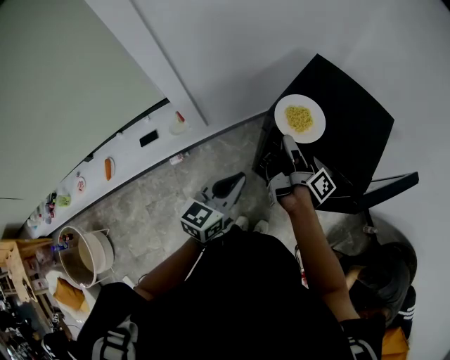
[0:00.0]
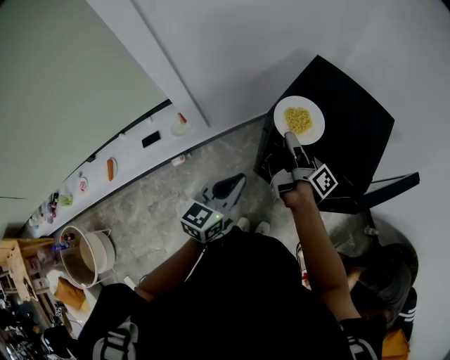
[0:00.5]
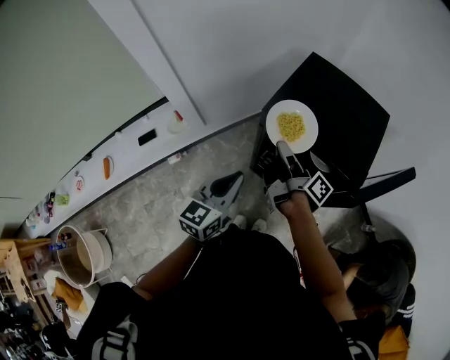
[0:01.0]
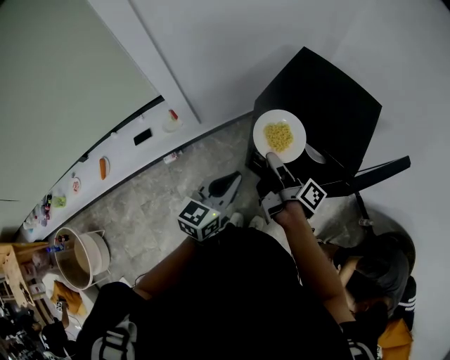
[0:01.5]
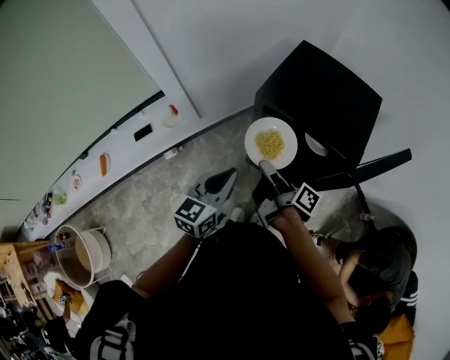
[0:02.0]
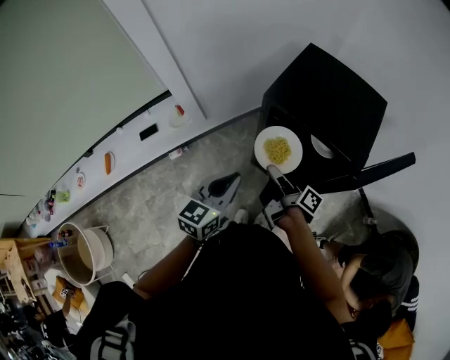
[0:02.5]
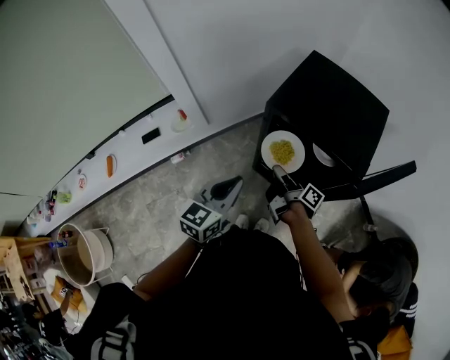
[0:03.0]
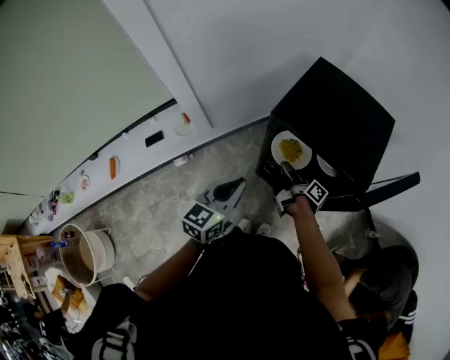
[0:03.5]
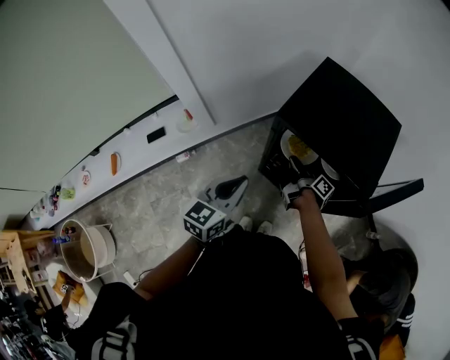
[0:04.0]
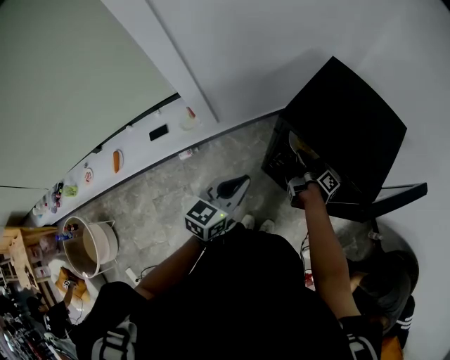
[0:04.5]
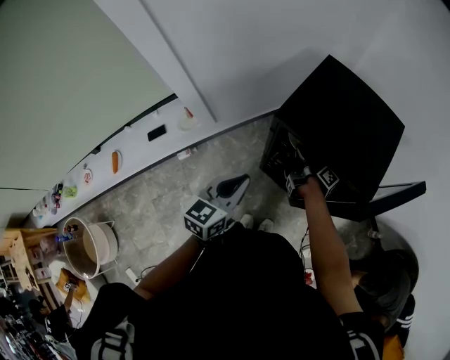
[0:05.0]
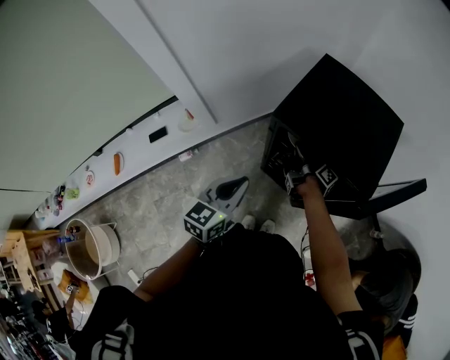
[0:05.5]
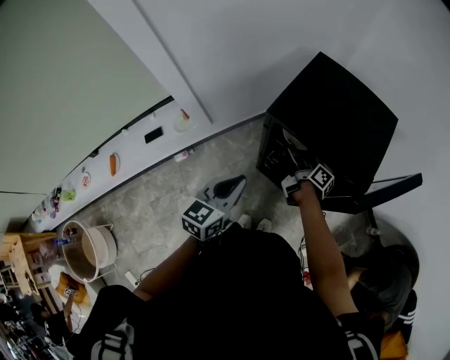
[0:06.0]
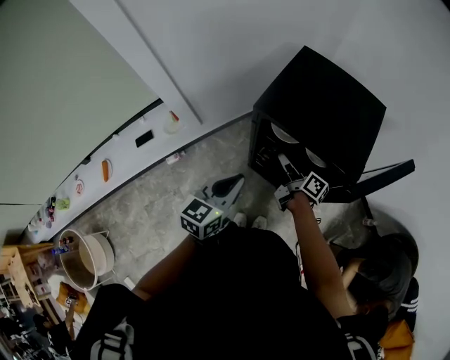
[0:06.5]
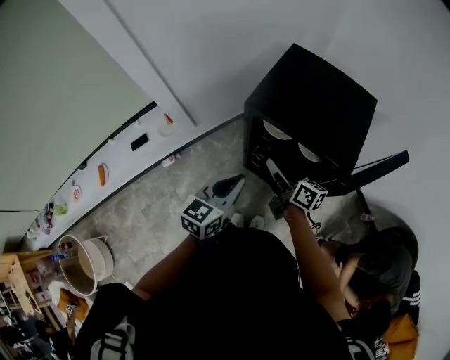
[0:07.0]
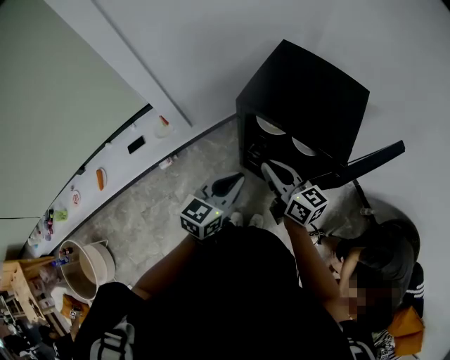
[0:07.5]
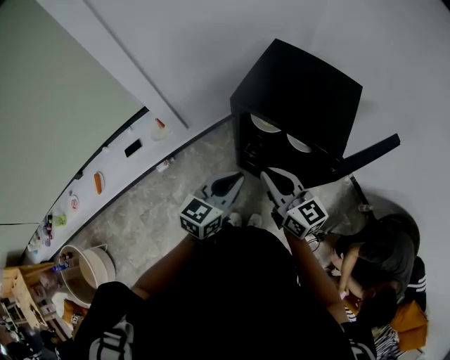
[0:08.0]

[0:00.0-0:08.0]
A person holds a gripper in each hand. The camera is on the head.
0:00.0 to 0:02.0: The left gripper heads backward, covering about 5 cm; the right gripper heads backward, covering some 15 cm.
0:02.0 to 0:04.0: The right gripper heads downward and forward, covering roughly 20 cm.
0:04.0 to 0:06.0: The right gripper opens.
0:06.0 to 0:08.0: The right gripper travels upward and backward by approximately 25 cm, rolls counterclockwise, seen from behind, by approximately 70 degrees, and closes up. The left gripper is displaced to the right by roughly 5 cm.

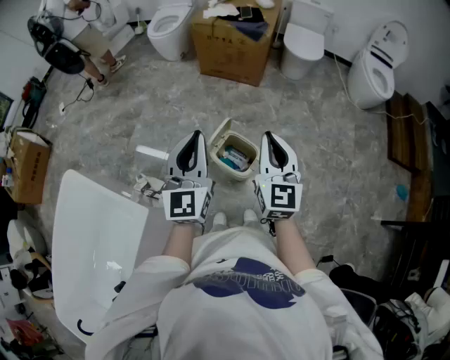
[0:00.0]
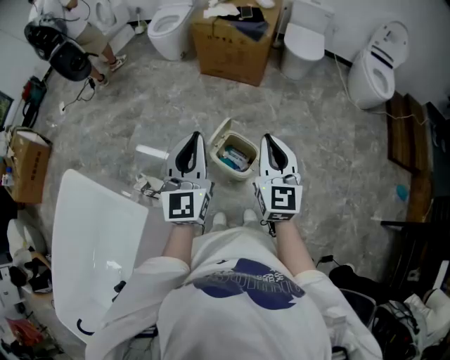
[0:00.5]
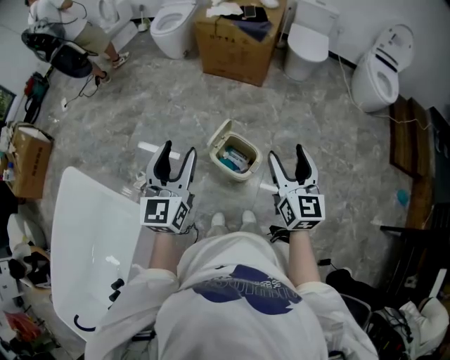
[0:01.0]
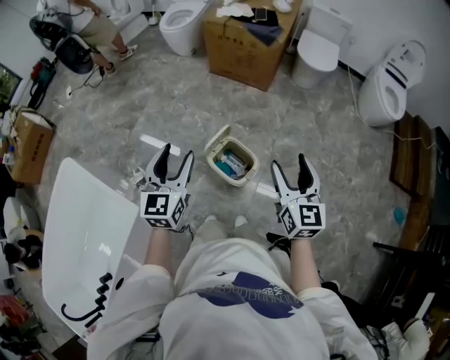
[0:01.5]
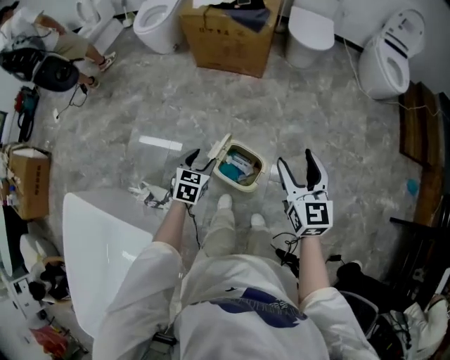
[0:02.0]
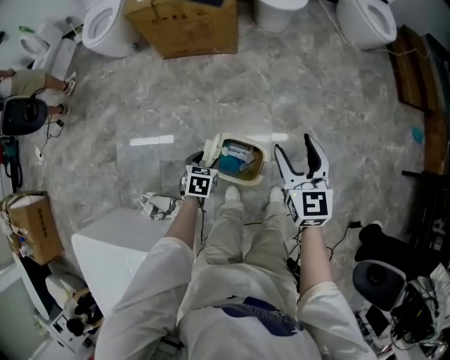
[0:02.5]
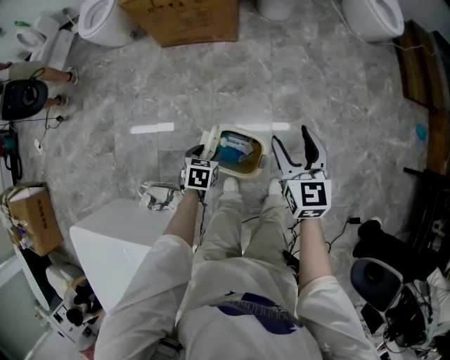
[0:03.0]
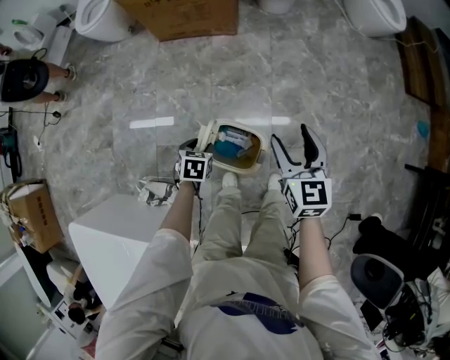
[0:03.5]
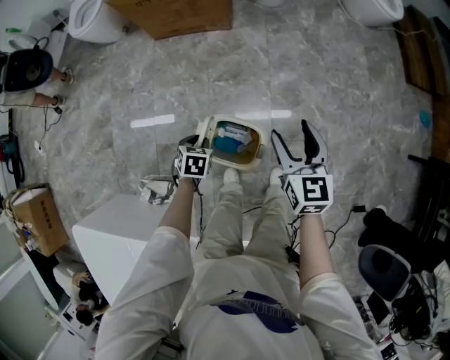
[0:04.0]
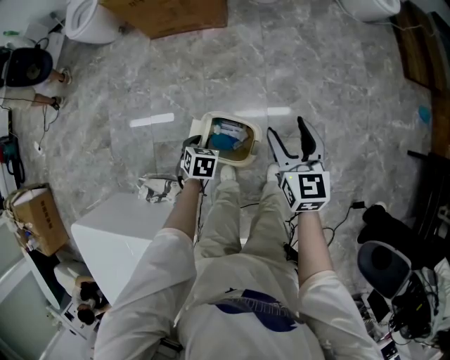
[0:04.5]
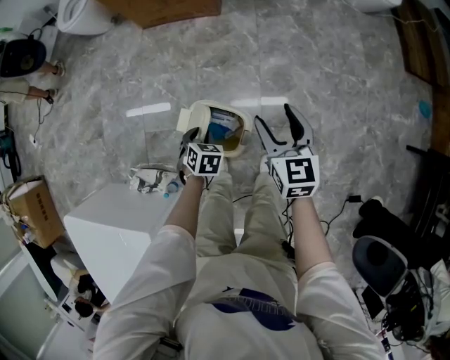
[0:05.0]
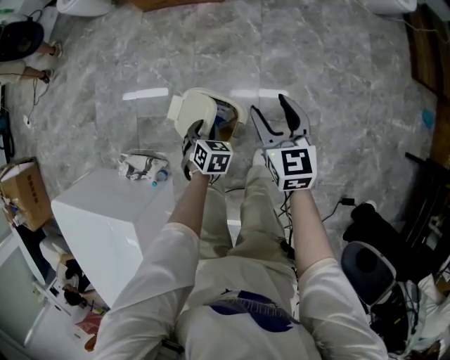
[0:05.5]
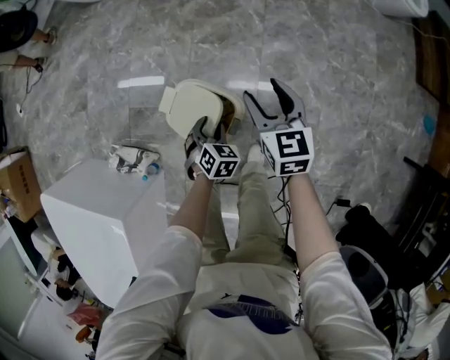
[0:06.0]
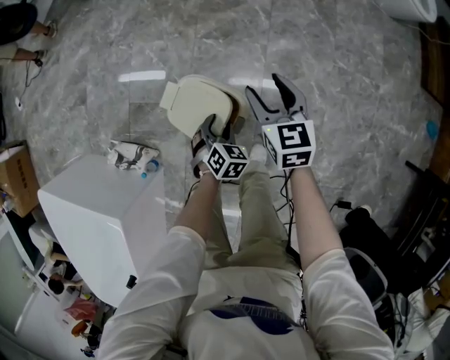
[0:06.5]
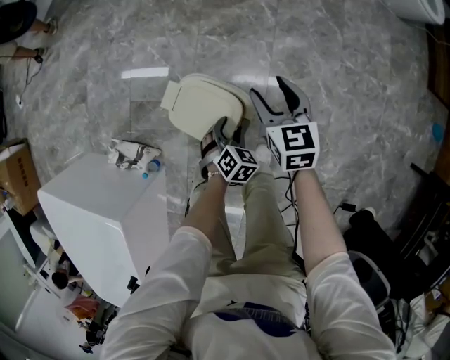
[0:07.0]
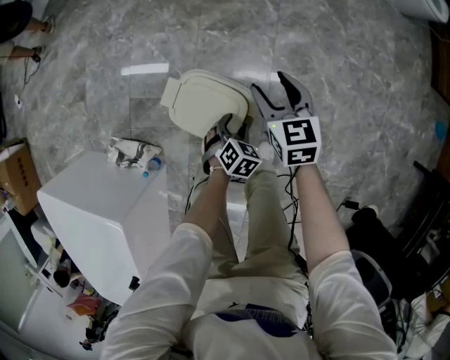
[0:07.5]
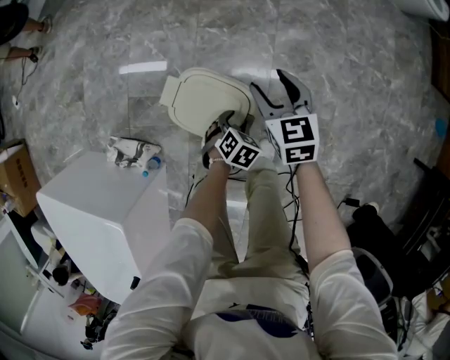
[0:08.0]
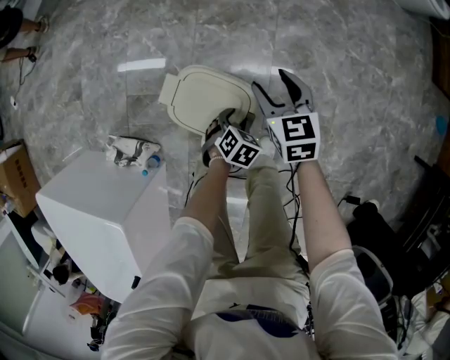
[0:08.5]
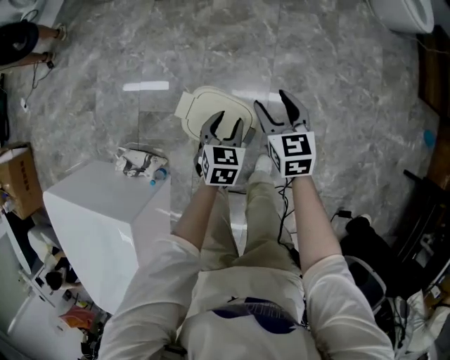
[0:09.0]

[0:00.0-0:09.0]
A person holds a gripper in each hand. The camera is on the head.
0:00.0 to 0:02.0: The left gripper shifts approximately 35 cm downward and forward, points its fingers about 50 degrees further downward, and opens its fingers, while the right gripper heads forward, downward and to the right, covering roughly 15 cm, and opens up.
0:02.0 to 0:04.5: Both grippers travel together downward, roughly 15 cm. The left gripper turns by about 20 degrees, and closes its fingers.
0:04.5 to 0:07.0: The right gripper moves downward, about 20 cm, and rotates some 20 degrees; the left gripper shifts some 20 cm downward, to the right and backward, and opens.
0:07.0 to 0:09.0: The right gripper changes place by approximately 5 cm. The left gripper moves upward and forward, approximately 15 cm, and rotates roughly 30 degrees.

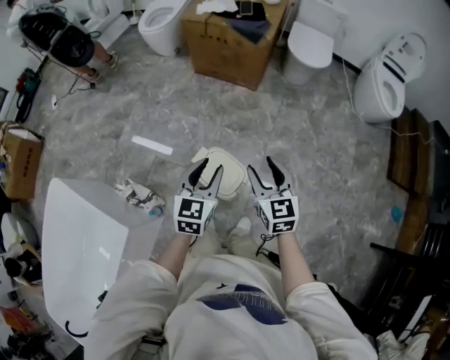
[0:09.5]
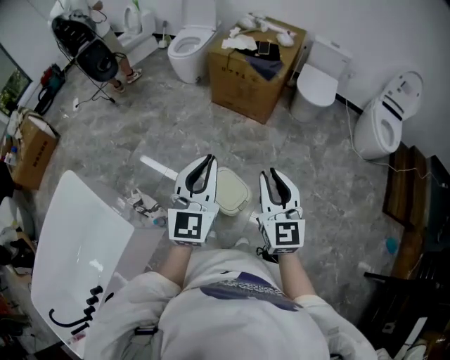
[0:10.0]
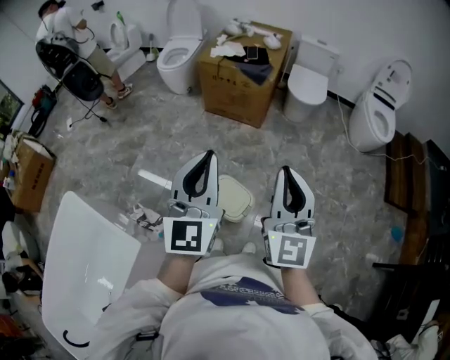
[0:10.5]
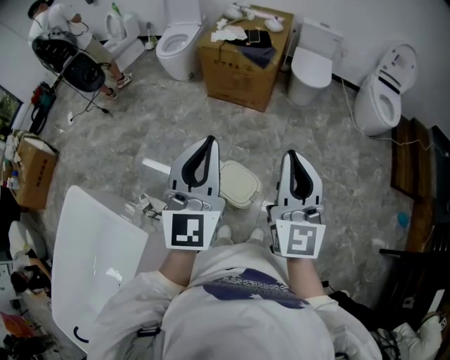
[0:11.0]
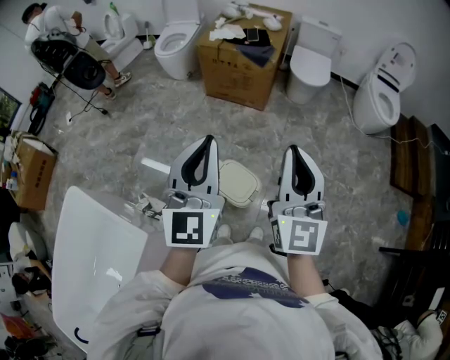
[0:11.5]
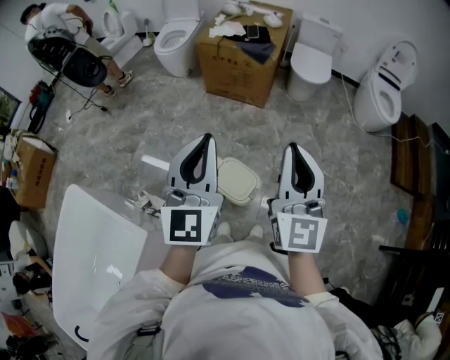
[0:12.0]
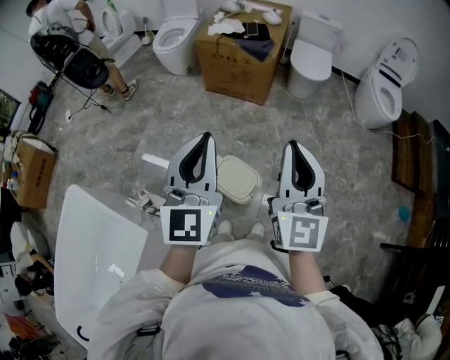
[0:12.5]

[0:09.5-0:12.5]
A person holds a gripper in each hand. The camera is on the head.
0:09.5 to 0:11.0: The grippers both shift upward by roughly 30 cm. The left gripper angles its fingers upward, by approximately 30 degrees, and closes; the right gripper points its fingers about 30 degrees further upward, and closes.
0:11.0 to 0:12.5: The grippers stay close to where they were, moving slightly.

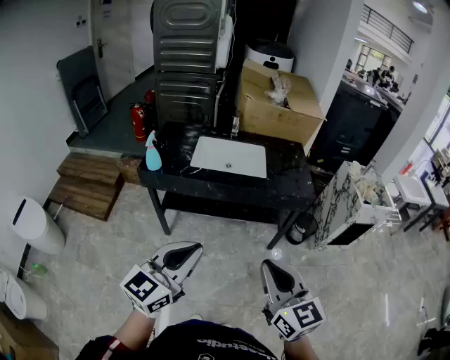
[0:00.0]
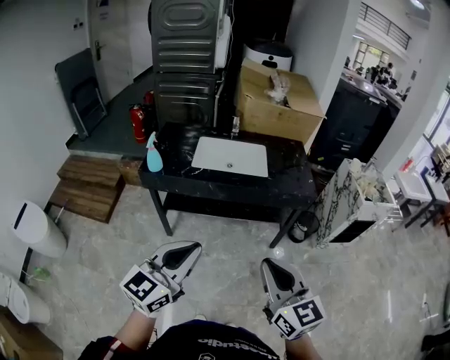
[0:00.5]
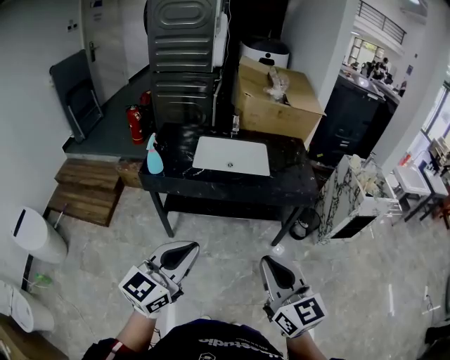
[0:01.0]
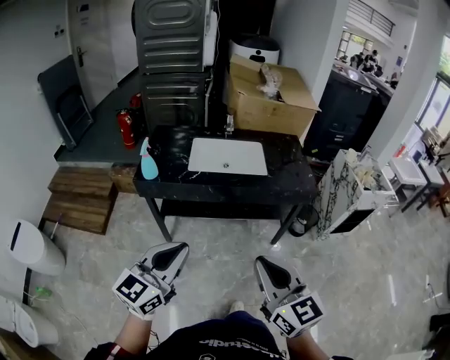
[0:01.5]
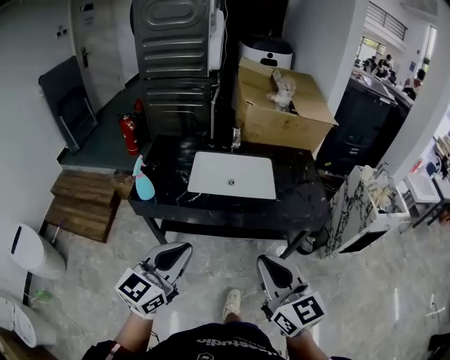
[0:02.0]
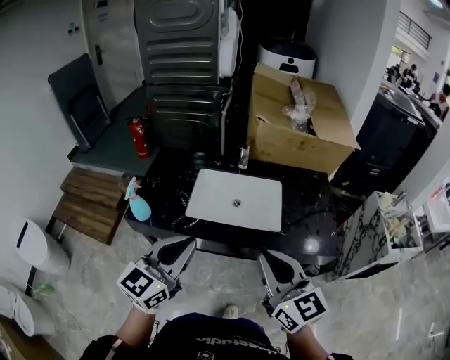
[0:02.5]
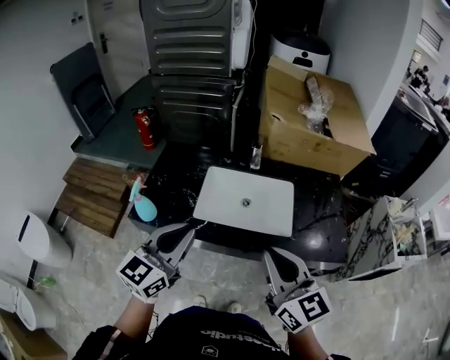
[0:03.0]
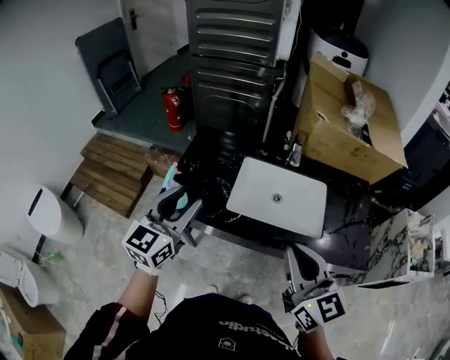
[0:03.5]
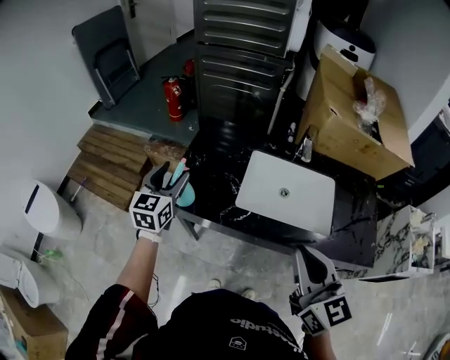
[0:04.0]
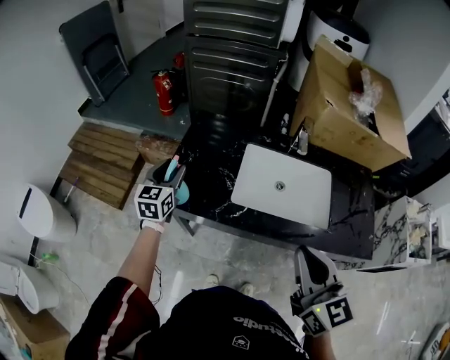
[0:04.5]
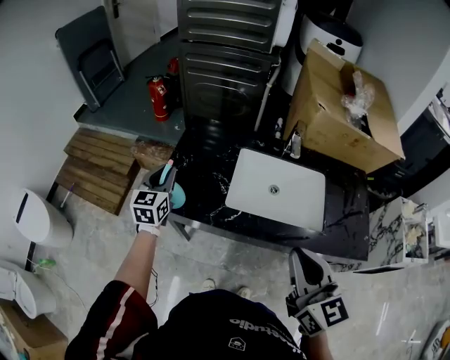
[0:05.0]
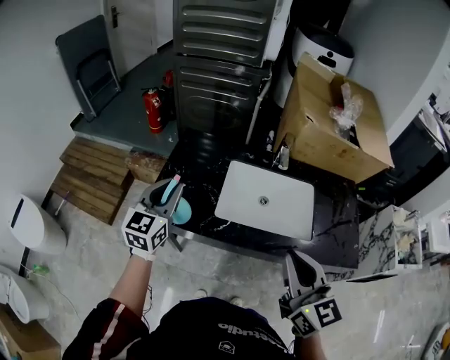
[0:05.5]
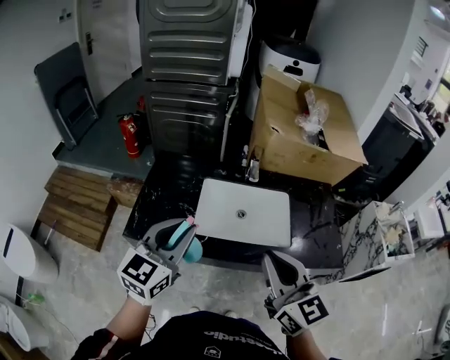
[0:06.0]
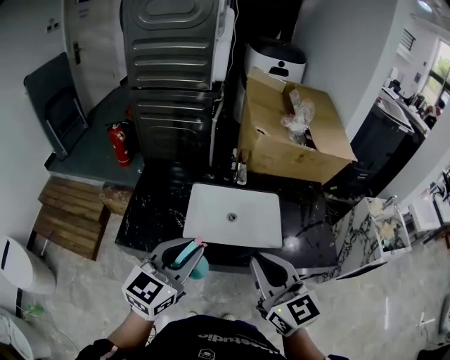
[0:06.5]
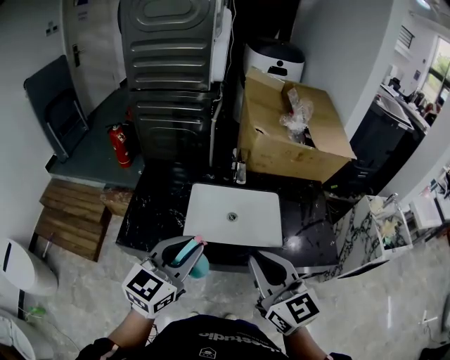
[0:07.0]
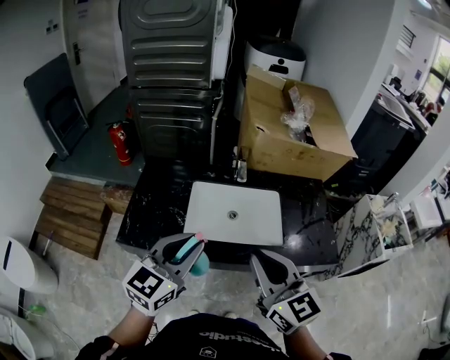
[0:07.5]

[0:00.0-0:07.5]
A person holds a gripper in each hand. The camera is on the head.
0:00.0 to 0:02.0: Both grippers travel together forward, roughly 20 cm.
0:02.0 to 0:04.0: The right gripper moves forward, some 25 cm; the left gripper travels forward and to the left by roughly 40 cm, rotates about 30 degrees, and opens up.
0:04.0 to 0:05.5: The left gripper heads to the right, covering approximately 5 cm, and closes its fingers.
0:05.5 to 0:07.5: The left gripper is displaced to the right and backward by some 20 cm, and rotates some 20 degrees.
